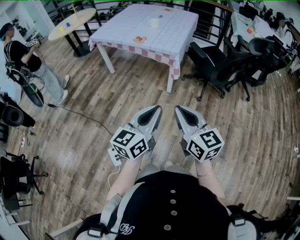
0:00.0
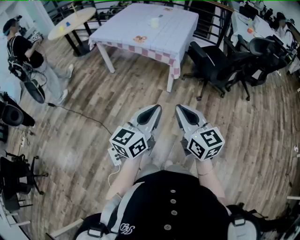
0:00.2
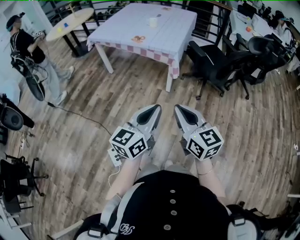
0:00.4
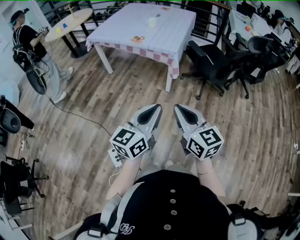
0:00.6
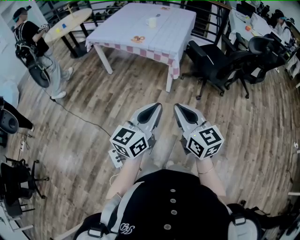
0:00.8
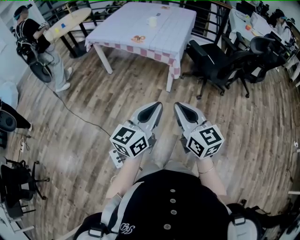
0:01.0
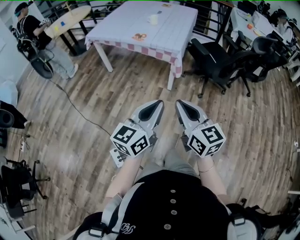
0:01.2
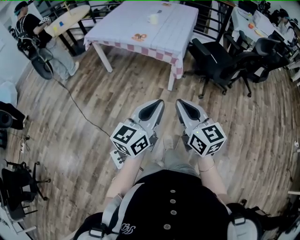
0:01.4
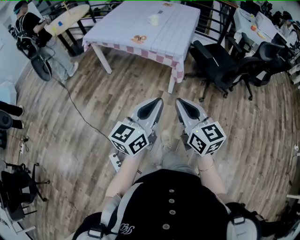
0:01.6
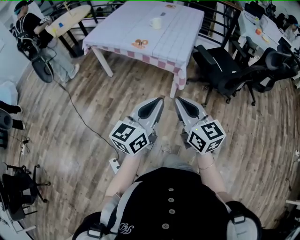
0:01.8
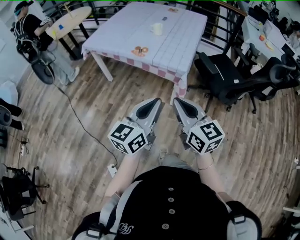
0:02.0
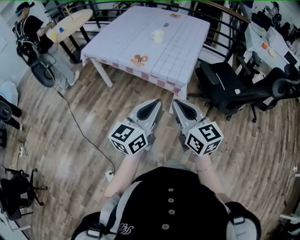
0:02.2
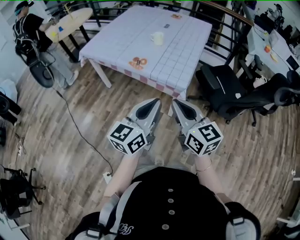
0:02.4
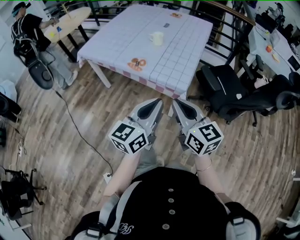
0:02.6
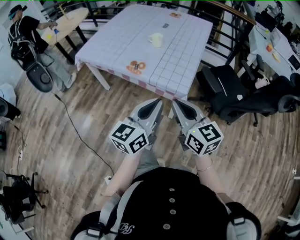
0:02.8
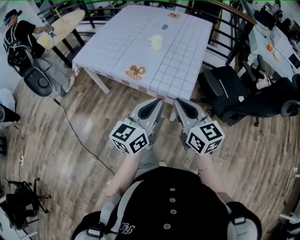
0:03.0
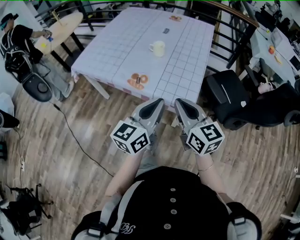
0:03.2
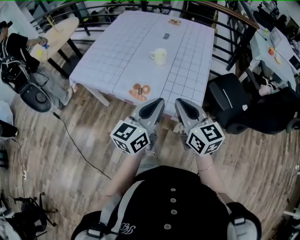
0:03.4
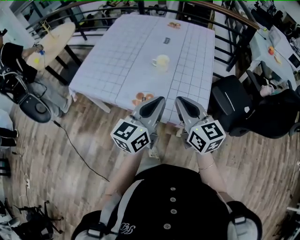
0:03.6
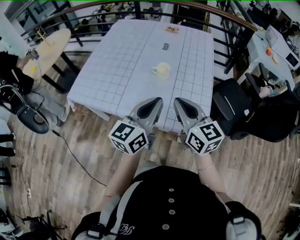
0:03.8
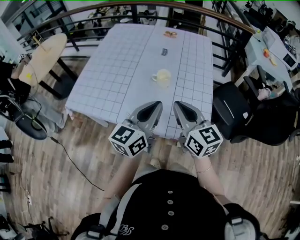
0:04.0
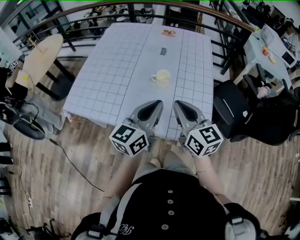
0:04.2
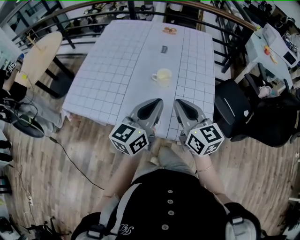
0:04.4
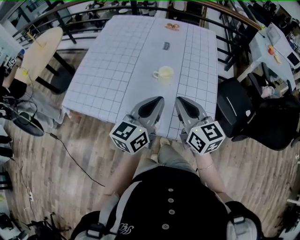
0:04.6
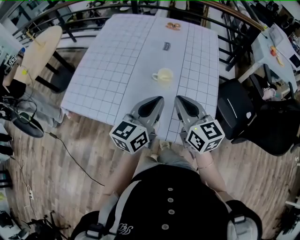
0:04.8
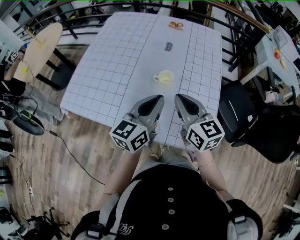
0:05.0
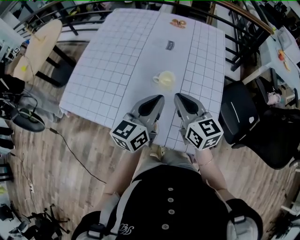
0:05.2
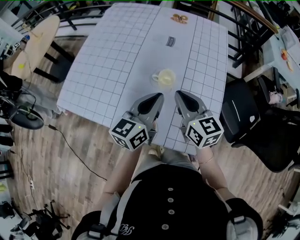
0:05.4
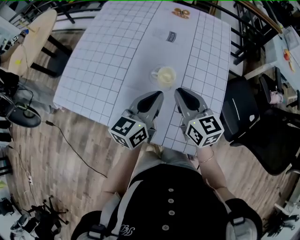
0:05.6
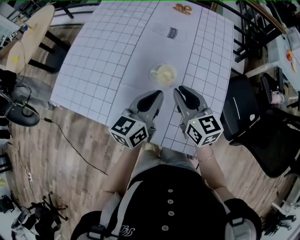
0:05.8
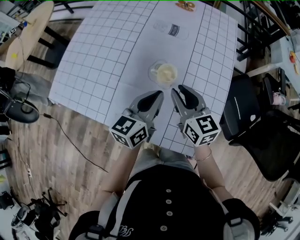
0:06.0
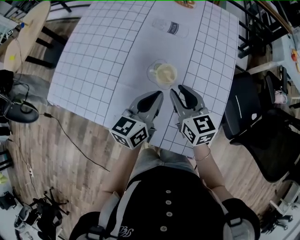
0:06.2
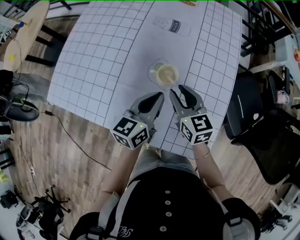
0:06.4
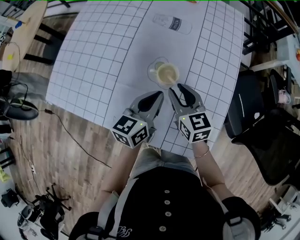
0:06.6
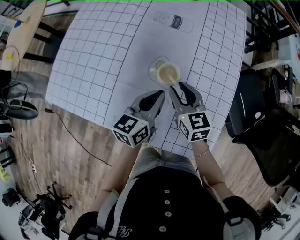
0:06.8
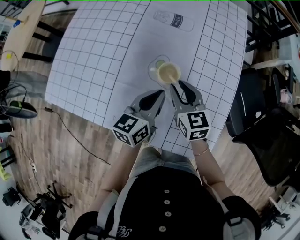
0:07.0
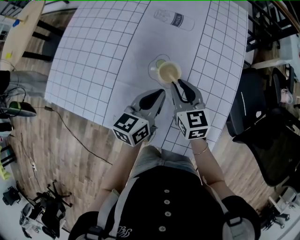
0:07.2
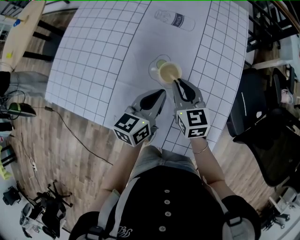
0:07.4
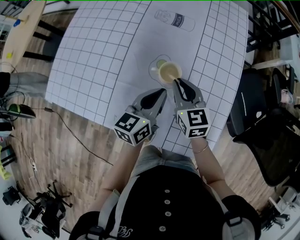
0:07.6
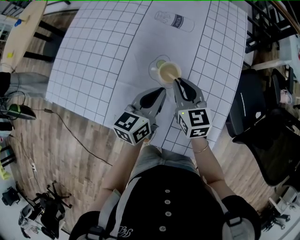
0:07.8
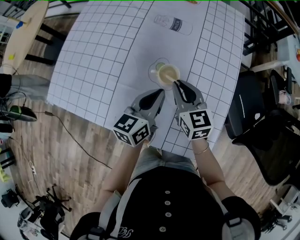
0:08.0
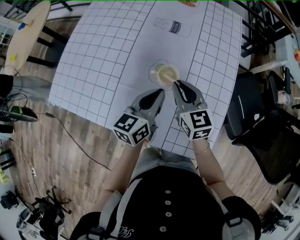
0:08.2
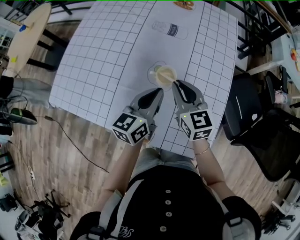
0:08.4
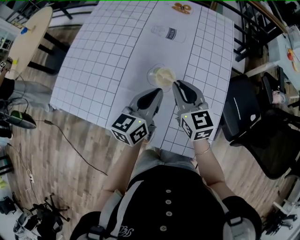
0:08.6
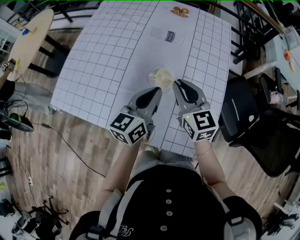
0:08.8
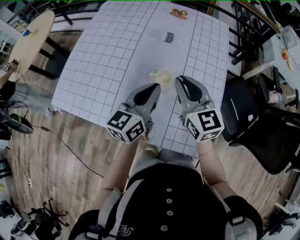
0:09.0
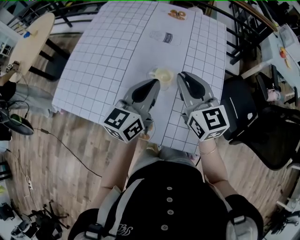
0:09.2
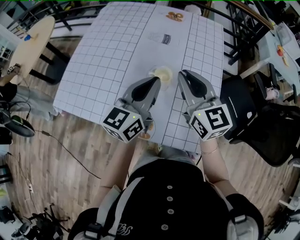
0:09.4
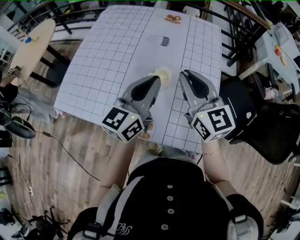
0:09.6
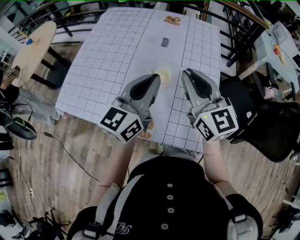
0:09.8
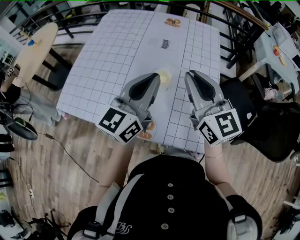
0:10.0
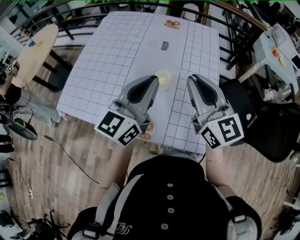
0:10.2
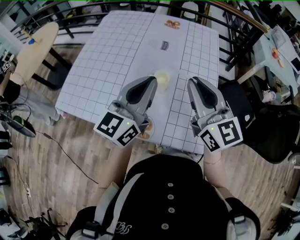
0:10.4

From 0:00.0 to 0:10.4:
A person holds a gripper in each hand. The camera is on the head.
From 0:00.0 to 0:01.4: The grippers both shift forward by roughly 5 cm.
From 0:01.4 to 0:03.0: The pair of grippers is taken forward, about 40 cm.
From 0:03.0 to 0:04.4: The two grippers go about 25 cm to the left.
From 0:04.4 to 0:06.0: The two grippers go about 20 cm forward and downward.
From 0:06.0 to 0:07.4: Both grippers travel together downward, approximately 5 cm.
From 0:07.4 to 0:09.0: The two grippers go approximately 15 cm upward.
From 0:09.0 to 0:10.4: The two grippers go roughly 15 cm upward and backward.

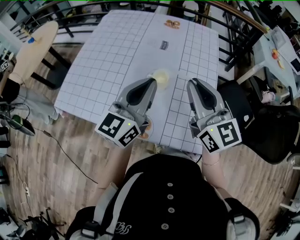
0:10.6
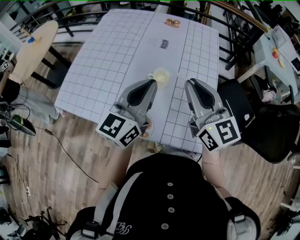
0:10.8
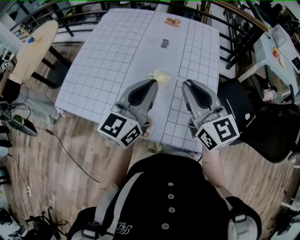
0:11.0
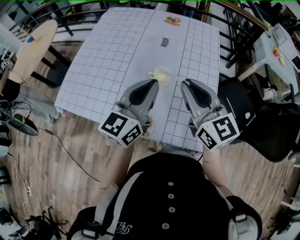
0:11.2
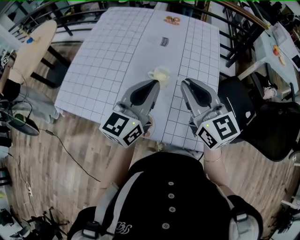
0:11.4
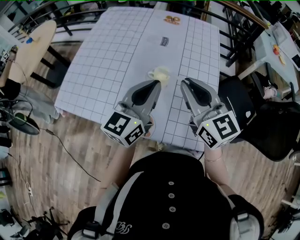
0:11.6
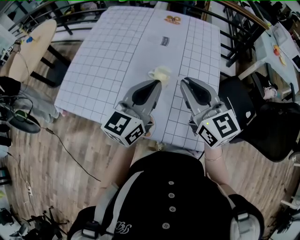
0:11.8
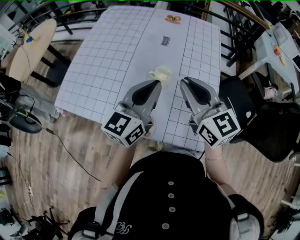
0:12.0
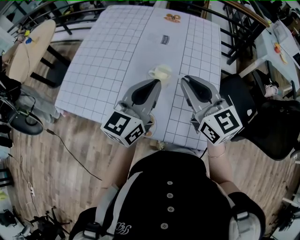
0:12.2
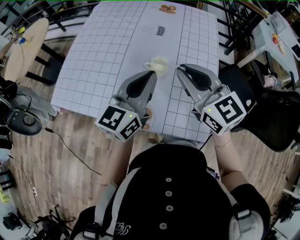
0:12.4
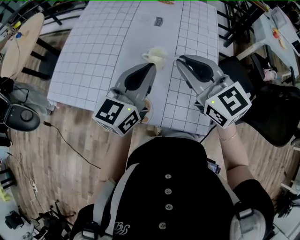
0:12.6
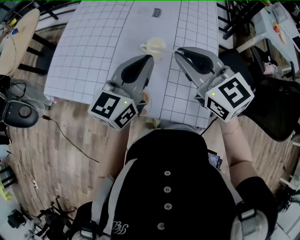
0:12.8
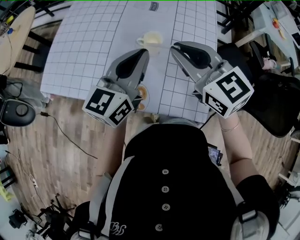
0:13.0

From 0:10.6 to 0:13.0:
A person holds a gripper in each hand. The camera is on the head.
From 0:10.6 to 0:11.8: There are only small adjustments of the grippers.
From 0:11.8 to 0:13.0: The grippers move only a little.

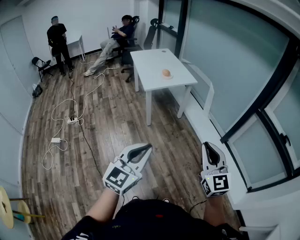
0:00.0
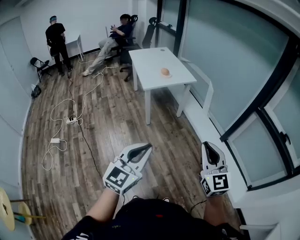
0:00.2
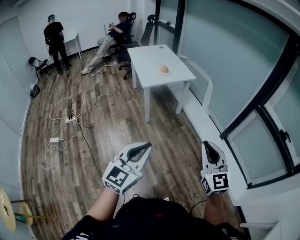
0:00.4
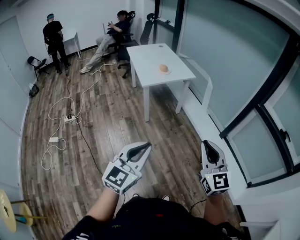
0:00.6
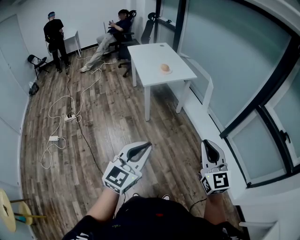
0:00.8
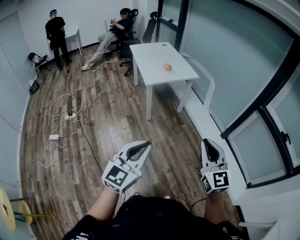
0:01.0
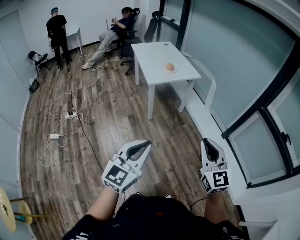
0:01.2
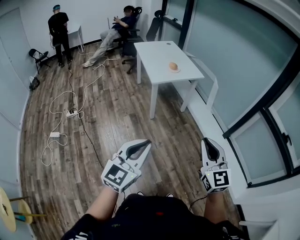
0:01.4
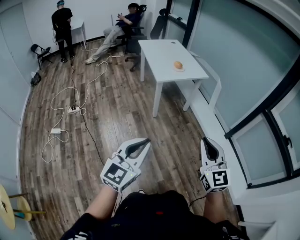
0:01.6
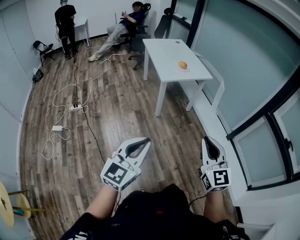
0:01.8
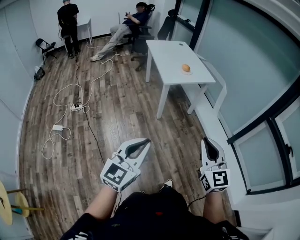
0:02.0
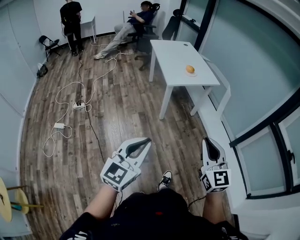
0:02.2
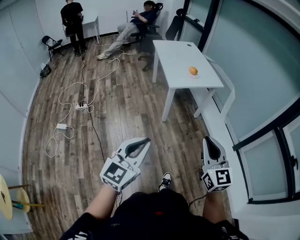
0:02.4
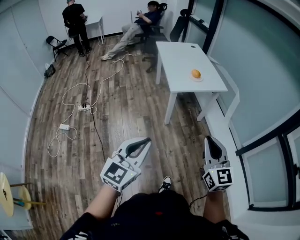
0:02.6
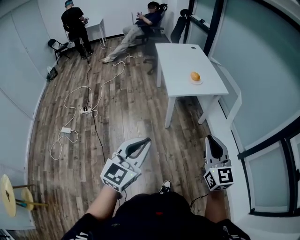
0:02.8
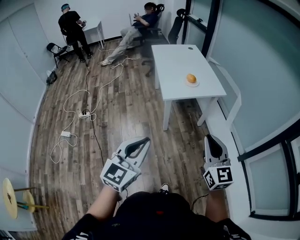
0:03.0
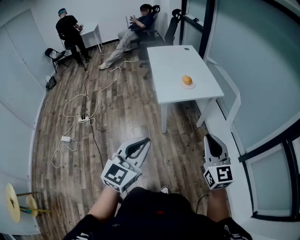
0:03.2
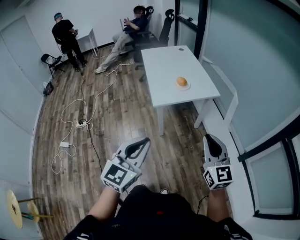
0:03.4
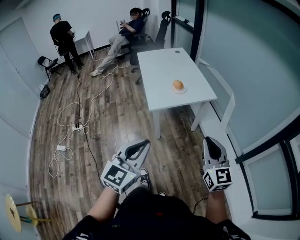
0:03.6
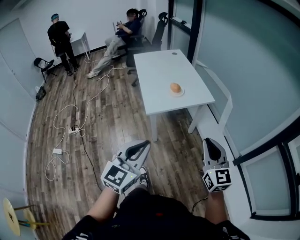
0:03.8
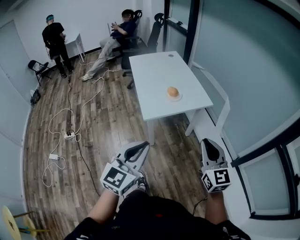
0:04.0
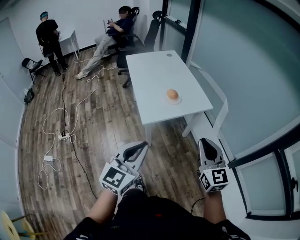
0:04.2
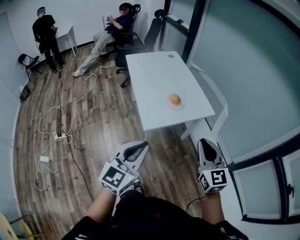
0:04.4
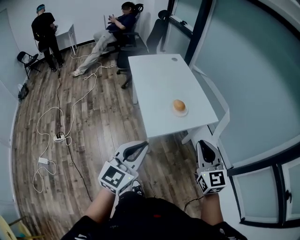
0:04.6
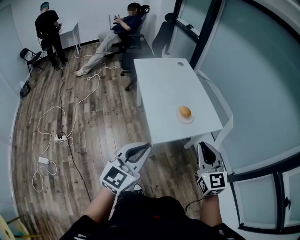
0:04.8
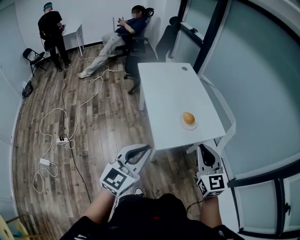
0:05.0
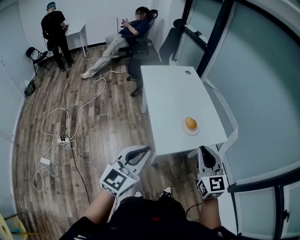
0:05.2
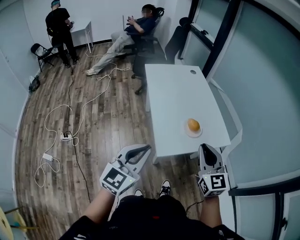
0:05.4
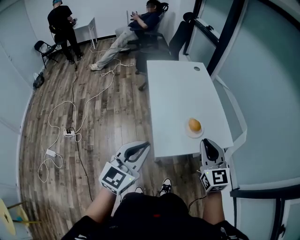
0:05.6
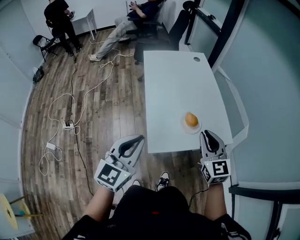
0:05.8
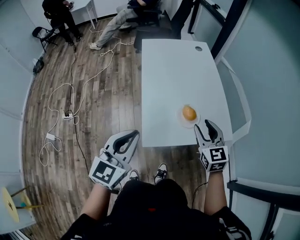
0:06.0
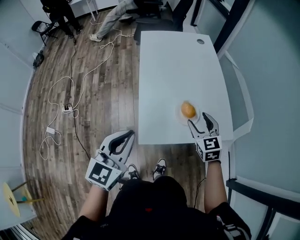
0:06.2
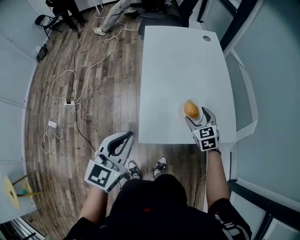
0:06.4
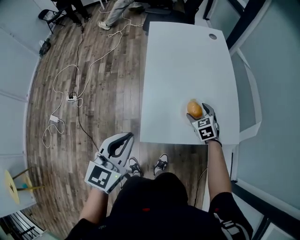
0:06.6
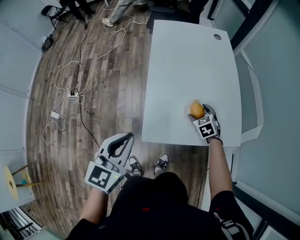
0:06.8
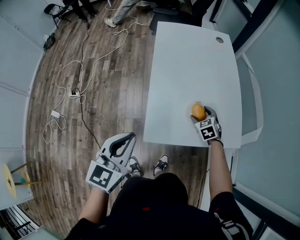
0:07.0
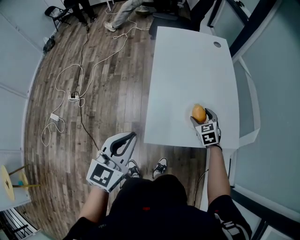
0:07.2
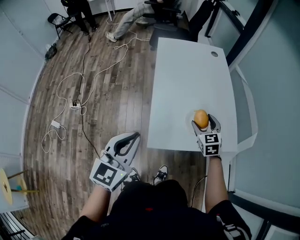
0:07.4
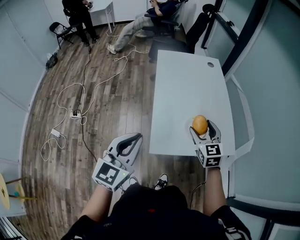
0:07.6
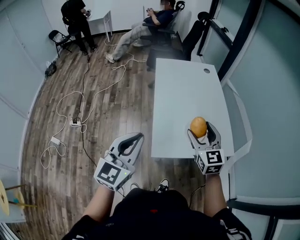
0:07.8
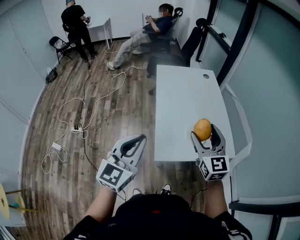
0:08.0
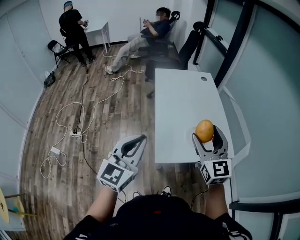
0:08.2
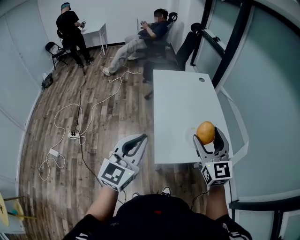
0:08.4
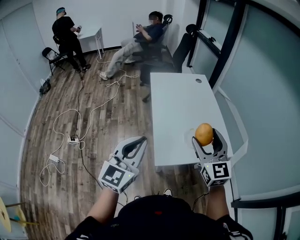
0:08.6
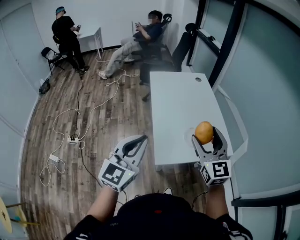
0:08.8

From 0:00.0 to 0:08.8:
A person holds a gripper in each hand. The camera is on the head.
From 0:00.0 to 0:01.4: The two grippers go roughly 10 cm to the left.
From 0:01.4 to 0:03.0: Both grippers move forward, approximately 30 cm.
From 0:03.0 to 0:04.4: Both grippers travel together forward, approximately 30 cm.
From 0:04.4 to 0:05.8: Both grippers move forward, roughly 25 cm.
From 0:05.8 to 0:07.4: The right gripper goes roughly 20 cm downward and forward, and opens its fingers.
From 0:07.4 to 0:08.8: The right gripper moves upward and backward, about 30 cm, and tips its fingers upward by roughly 30 degrees; the left gripper heads upward, covering about 10 cm.

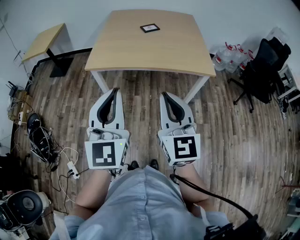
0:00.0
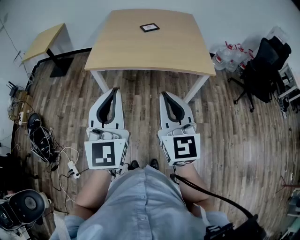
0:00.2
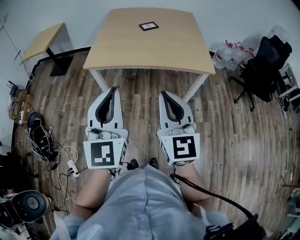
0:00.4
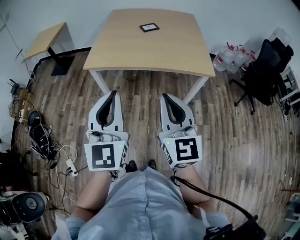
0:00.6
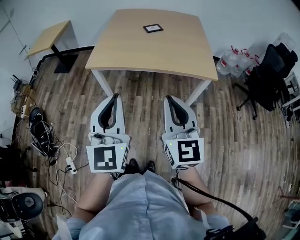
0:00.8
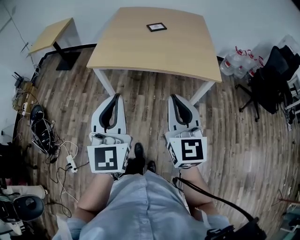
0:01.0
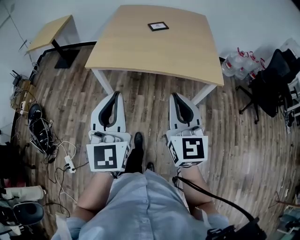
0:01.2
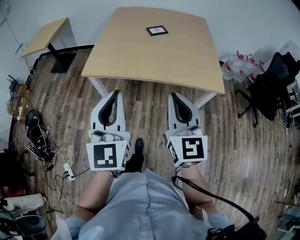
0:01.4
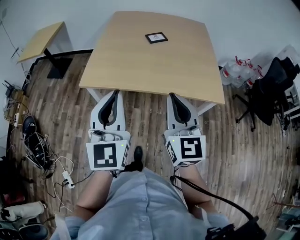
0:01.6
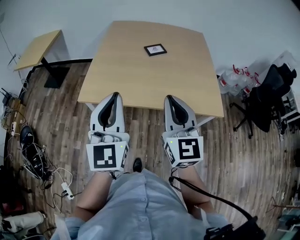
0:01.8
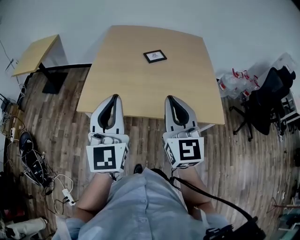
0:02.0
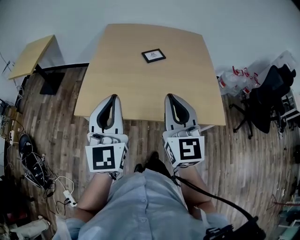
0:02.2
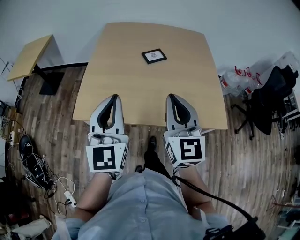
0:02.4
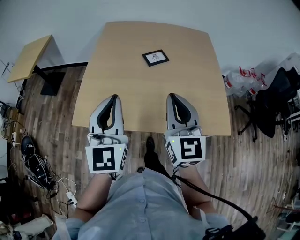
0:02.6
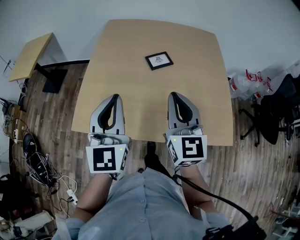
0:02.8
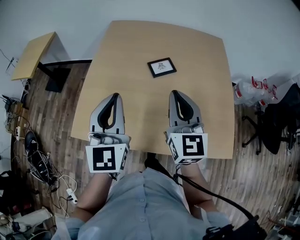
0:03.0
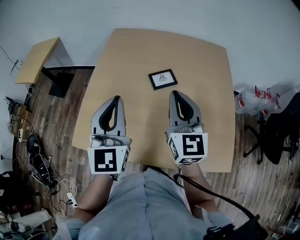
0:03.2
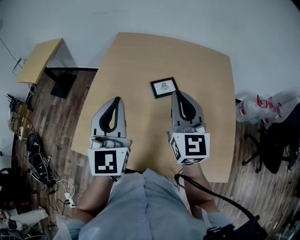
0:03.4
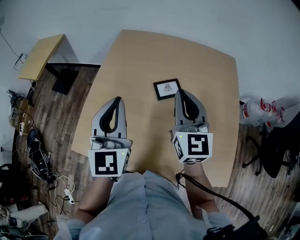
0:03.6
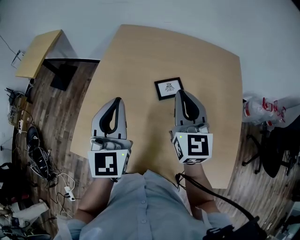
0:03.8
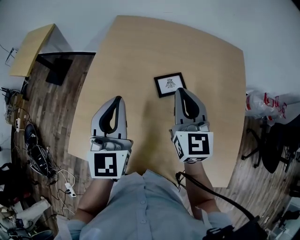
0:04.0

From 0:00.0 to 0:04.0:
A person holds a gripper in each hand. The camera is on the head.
From 0:00.0 to 0:01.4: Both grippers move forward, some 10 cm.
From 0:01.4 to 0:02.6: The two grippers go some 25 cm forward.
From 0:02.6 to 0:04.0: Both grippers travel together forward, roughly 25 cm.
